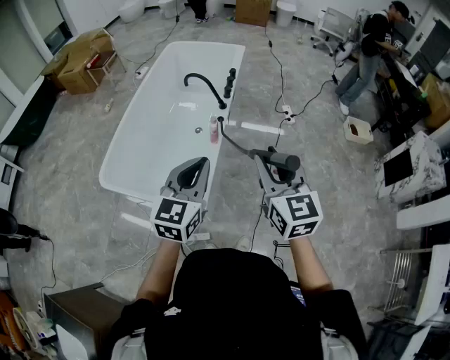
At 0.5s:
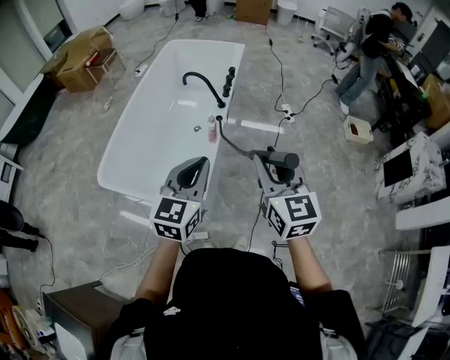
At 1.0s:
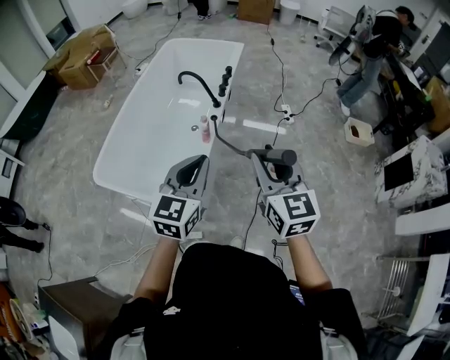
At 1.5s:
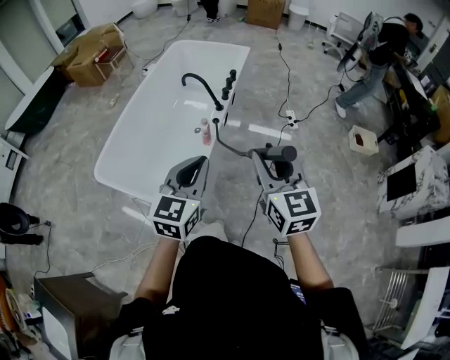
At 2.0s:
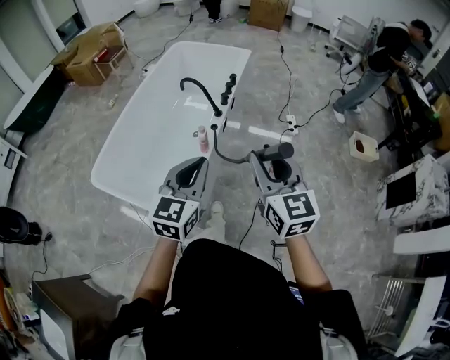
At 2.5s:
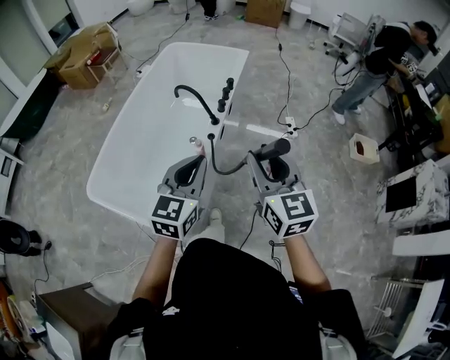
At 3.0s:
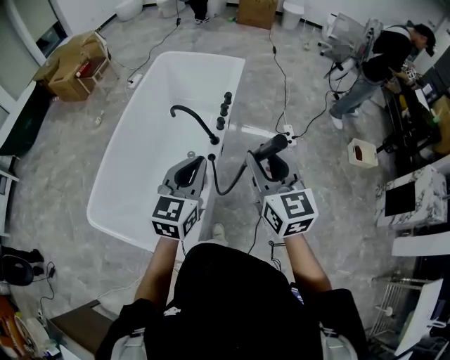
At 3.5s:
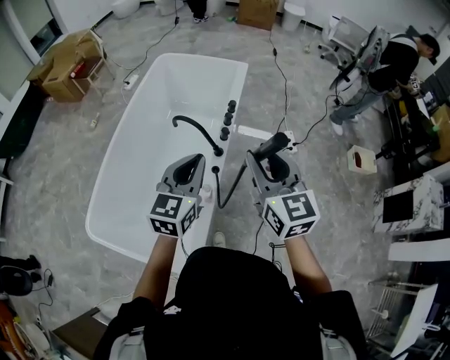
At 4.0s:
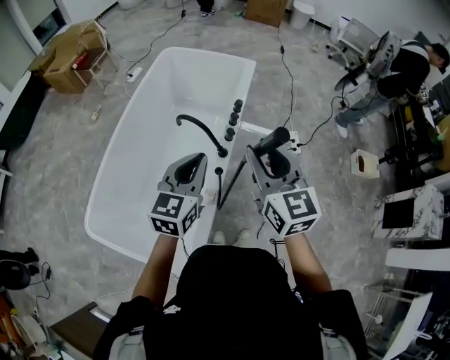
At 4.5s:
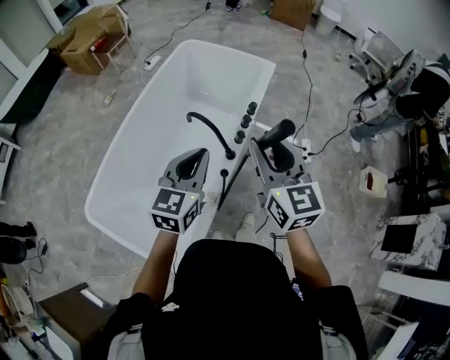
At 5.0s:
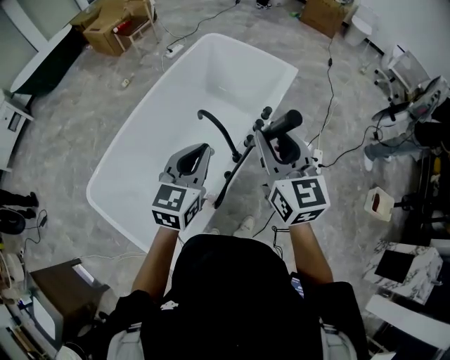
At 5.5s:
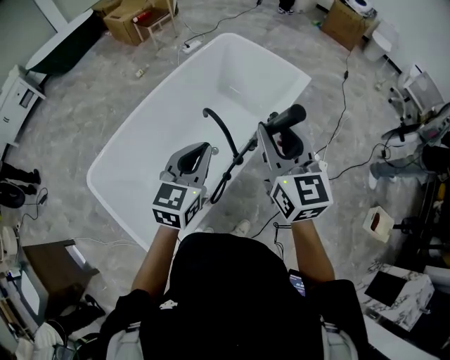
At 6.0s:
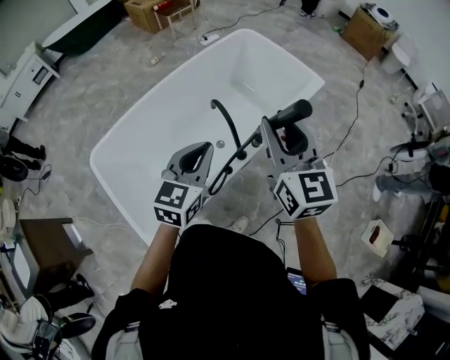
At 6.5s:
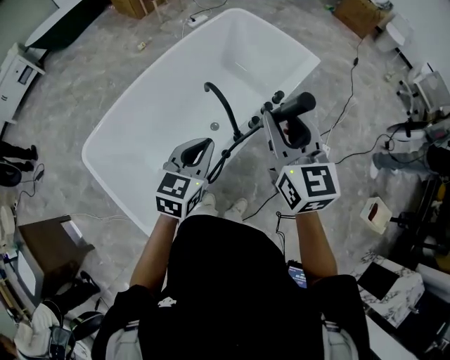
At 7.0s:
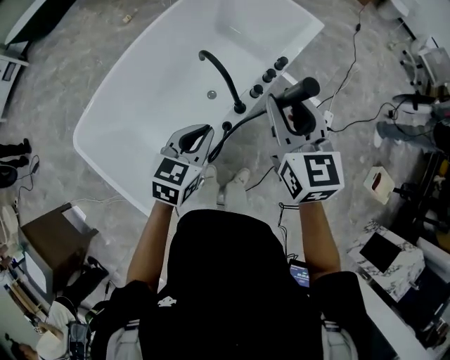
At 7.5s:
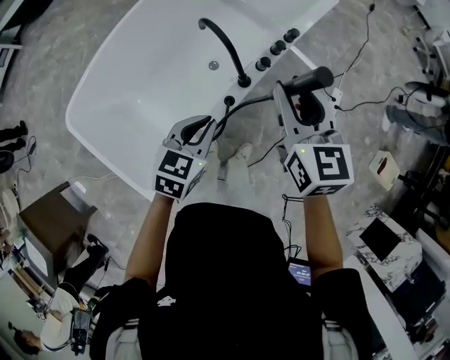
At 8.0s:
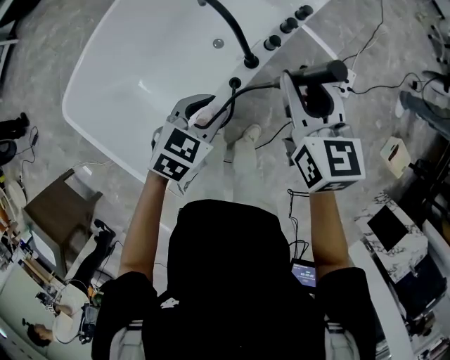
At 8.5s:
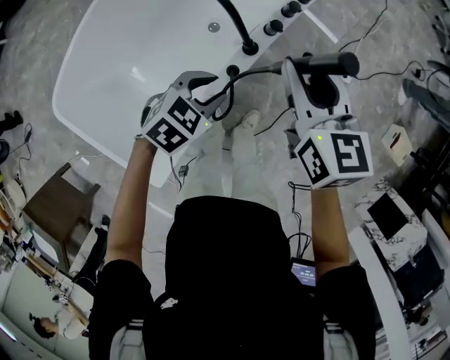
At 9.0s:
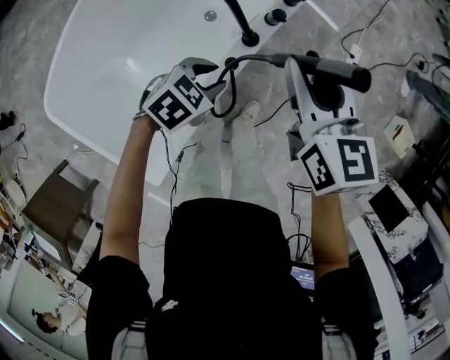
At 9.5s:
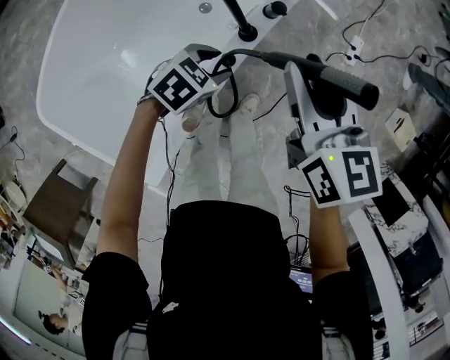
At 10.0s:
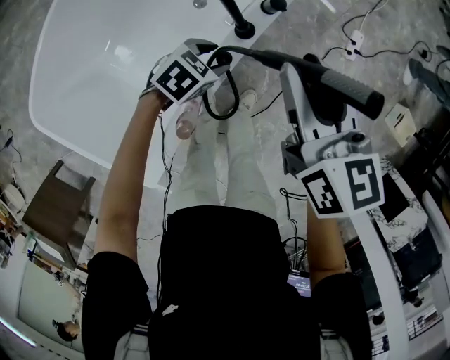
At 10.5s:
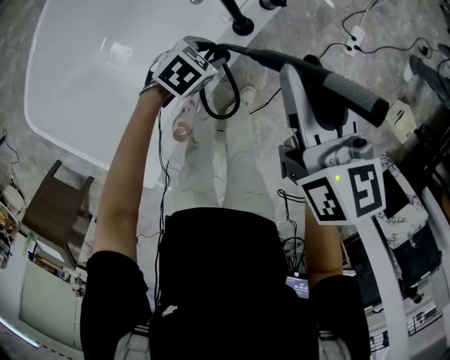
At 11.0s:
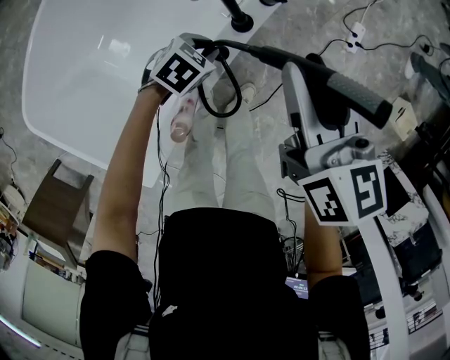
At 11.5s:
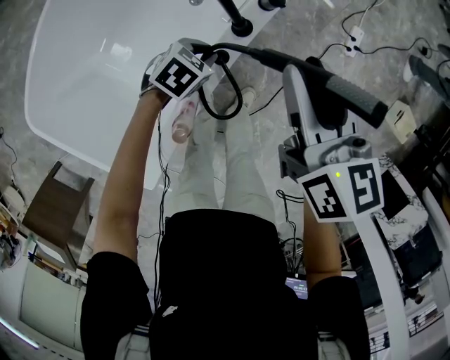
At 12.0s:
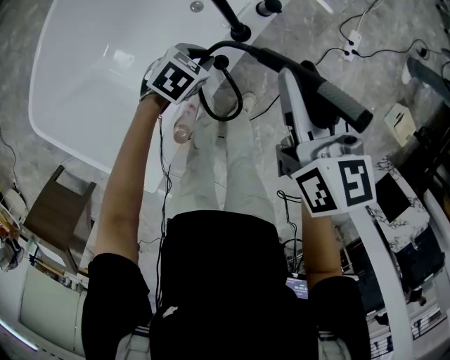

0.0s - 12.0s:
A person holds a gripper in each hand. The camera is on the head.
0.0s - 2.0s: The right gripper travels forward and to the right by roughly 10 cm, while the left gripper is displaced to the right and forward by some 10 cm.
2.0s - 4.0s: The grippers both shift forward by roughly 35 cm.
4.0s - 6.0s: The left gripper changes place by about 5 cm, and turns by some 30 degrees; the right gripper ends up approximately 15 cm from where it was, and rotates roughly 30 degrees.
6.0s - 8.0s: Both grippers move downward, some 25 cm. The right gripper turns by some 20 degrees; the left gripper swivels roughly 40 degrees, and opens its fingers.
8.0s - 10.0s: The right gripper goes some 10 cm downward. Meanwhile the left gripper is displaced downward by about 20 cm, and rotates approximately 20 degrees.
10.0s - 12.0s: The left gripper closes up.

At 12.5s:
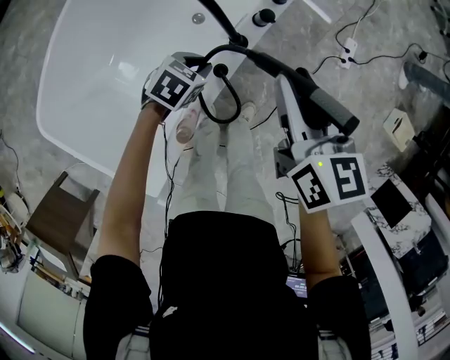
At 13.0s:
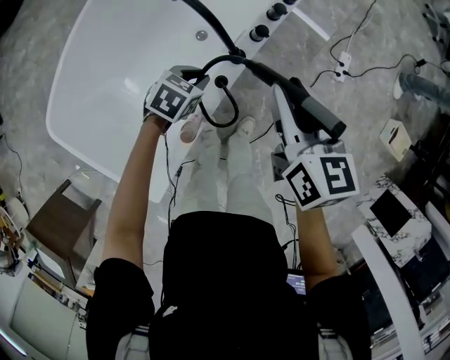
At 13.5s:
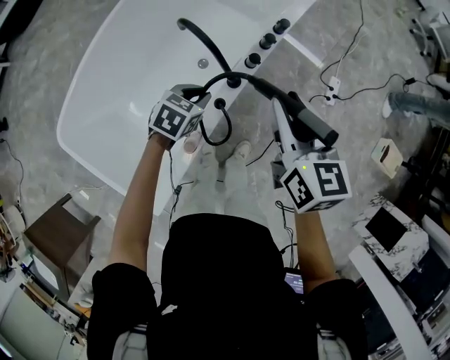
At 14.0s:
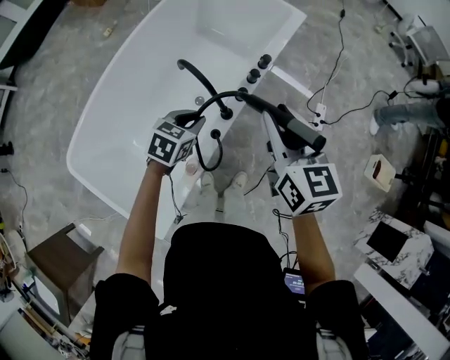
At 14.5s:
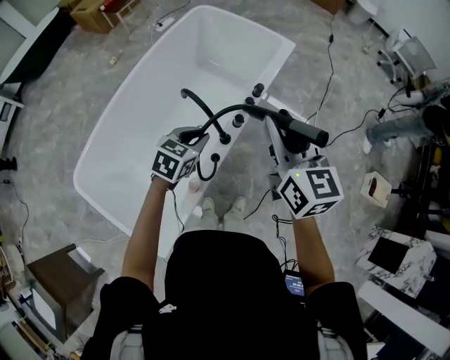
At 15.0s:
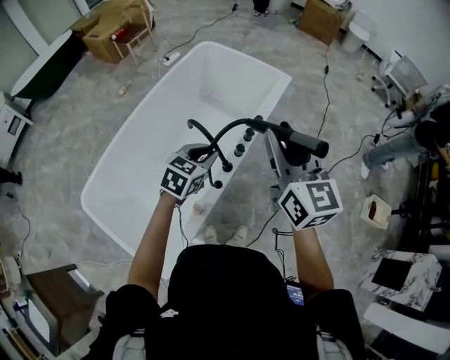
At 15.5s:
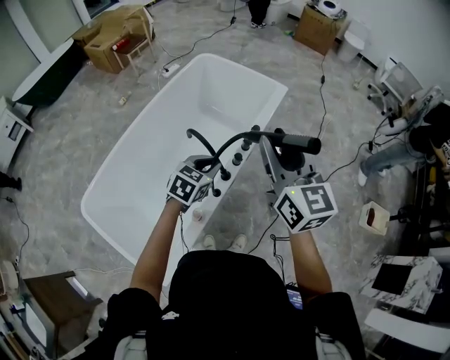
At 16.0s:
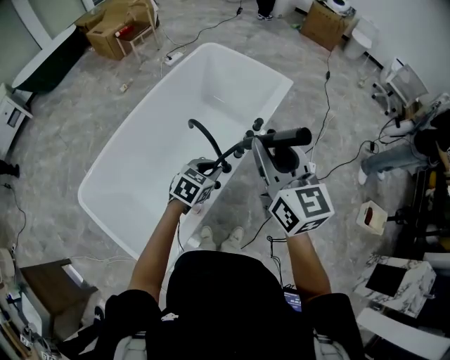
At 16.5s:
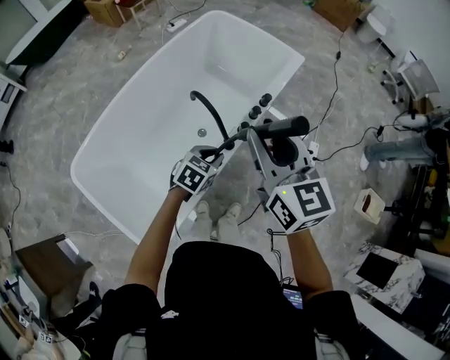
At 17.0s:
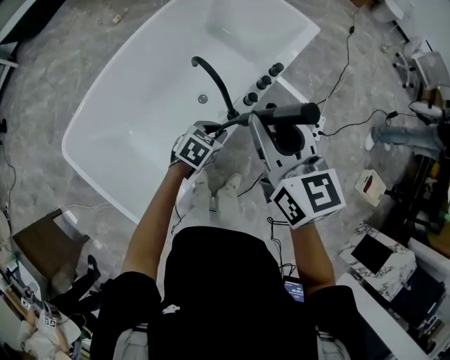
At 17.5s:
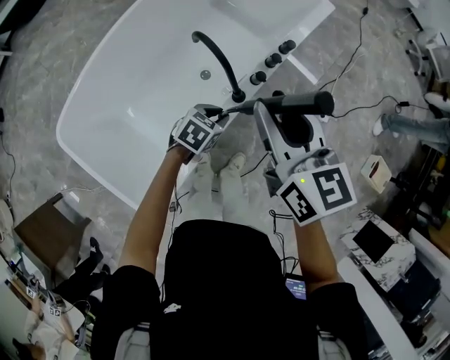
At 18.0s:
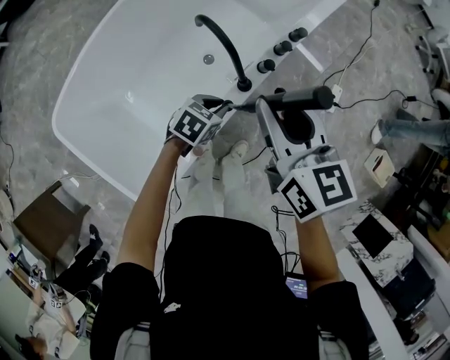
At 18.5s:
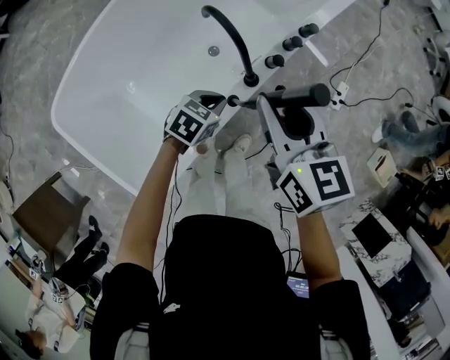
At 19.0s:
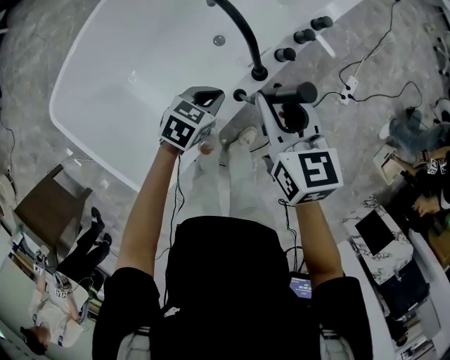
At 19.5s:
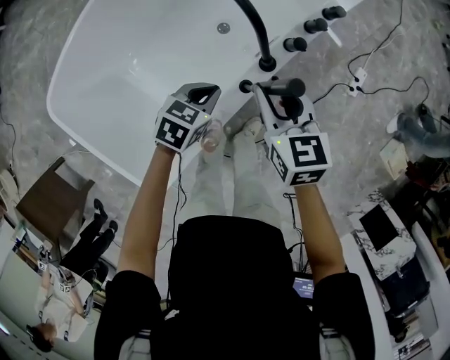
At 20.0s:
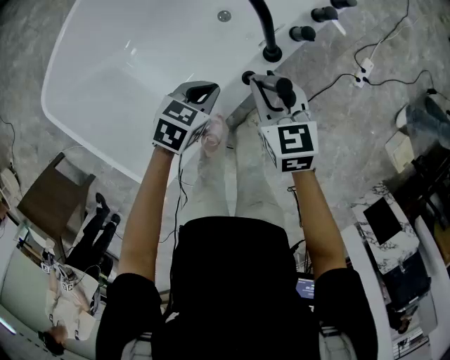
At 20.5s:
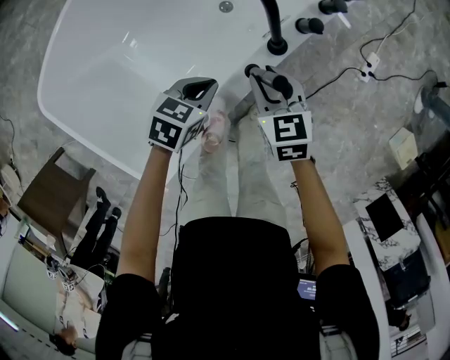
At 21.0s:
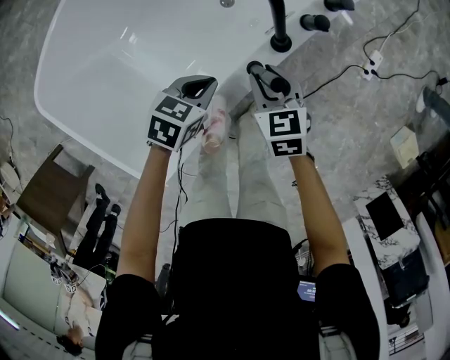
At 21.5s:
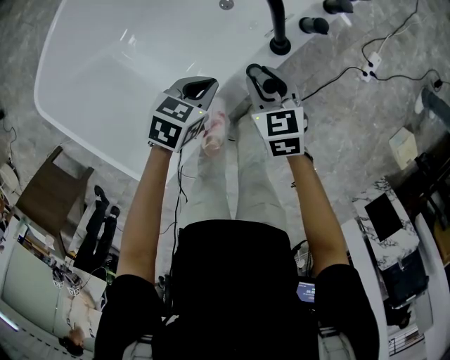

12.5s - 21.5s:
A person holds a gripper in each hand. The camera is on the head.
12.5s - 14.5s: Both grippers move upward, about 30 cm. The left gripper swivels about 20 degrees. Meanwhile the right gripper rotates some 20 degrees.
14.5s - 17.0s: The left gripper shifts some 15 cm downward; the right gripper shifts approximately 10 cm to the left, and moves some 10 cm upward and comes back.
17.0s - 19.5s: The right gripper is displaced downward by approximately 30 cm, and turns by some 20 degrees; the left gripper is displaced downward and to the left by roughly 15 cm.
19.5s - 21.5s: The right gripper is displaced downward by some 15 cm; the left gripper goes roughly 5 cm downward.

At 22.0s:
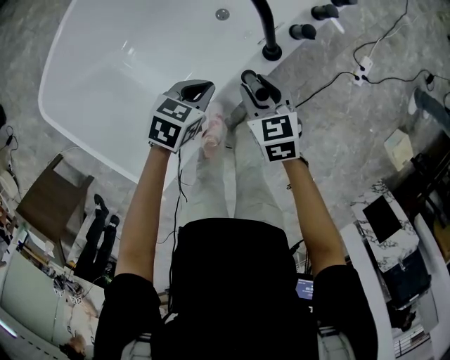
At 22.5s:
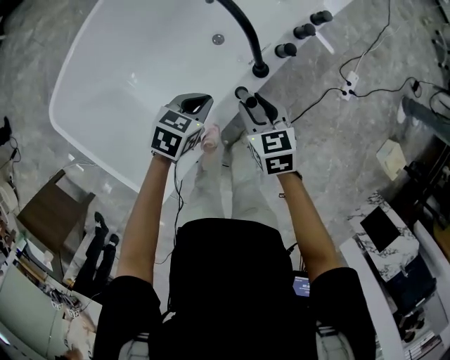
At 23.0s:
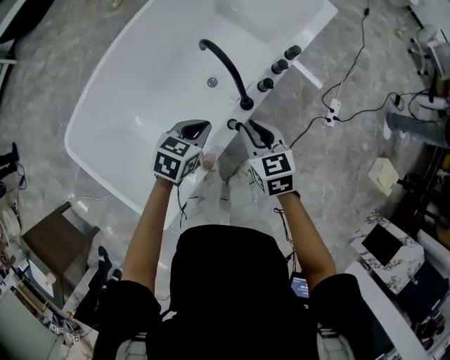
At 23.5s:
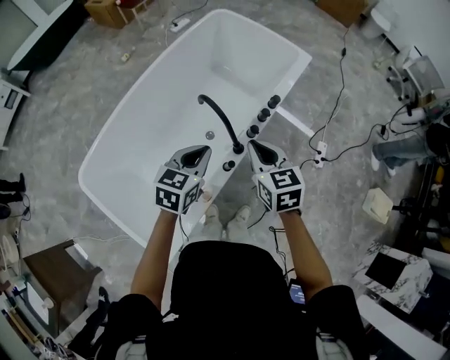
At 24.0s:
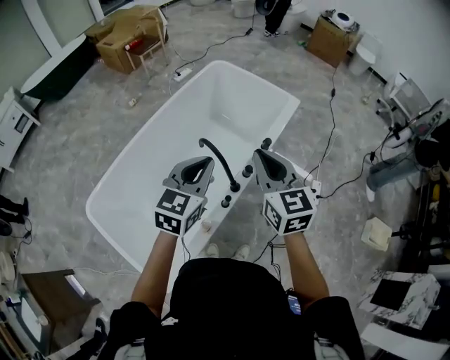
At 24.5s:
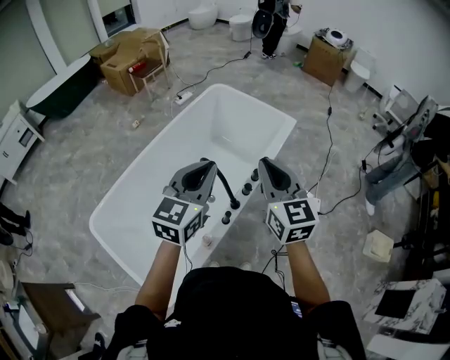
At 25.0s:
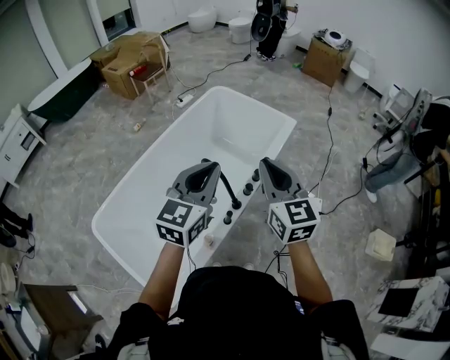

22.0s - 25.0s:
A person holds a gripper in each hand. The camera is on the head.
22.0s - 23.5s: Both grippers move upward, roughly 35 cm. The right gripper swivels roughly 20 degrees, and closes up. The left gripper swivels some 30 degrees.
23.5s - 25.0s: Both grippers travel together upward, approximately 25 cm. The left gripper turns by approximately 30 degrees. The right gripper changes its angle by about 30 degrees.

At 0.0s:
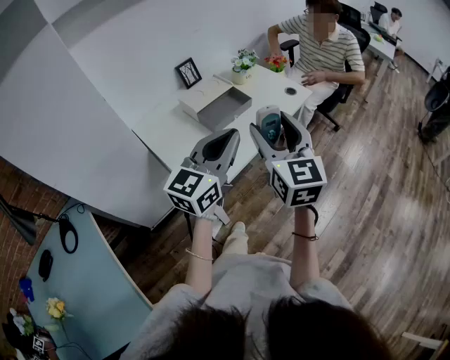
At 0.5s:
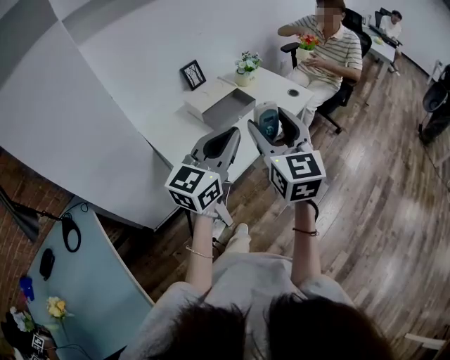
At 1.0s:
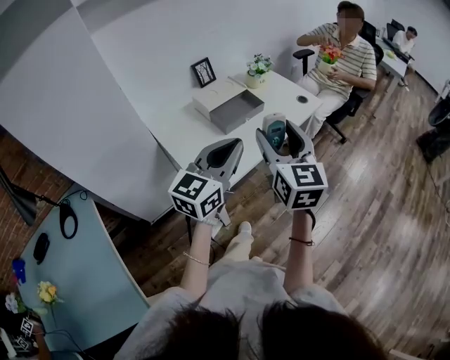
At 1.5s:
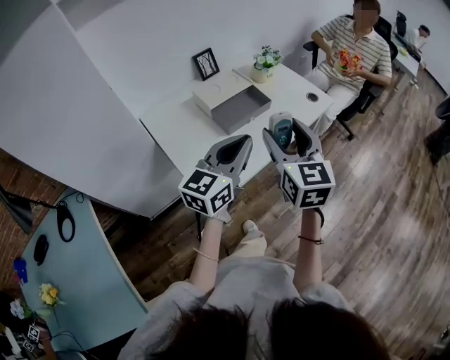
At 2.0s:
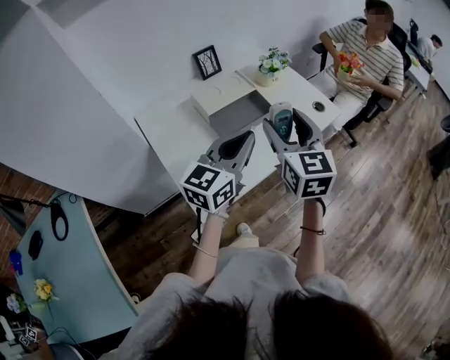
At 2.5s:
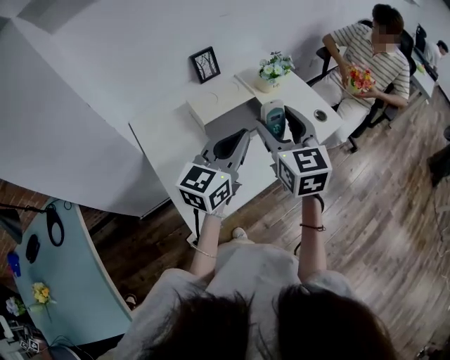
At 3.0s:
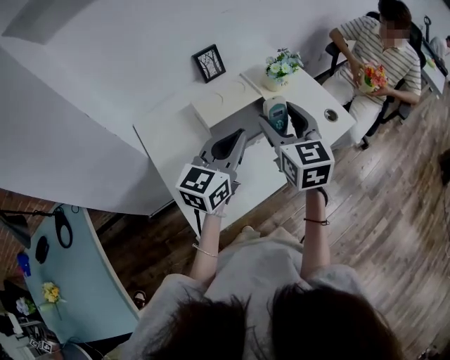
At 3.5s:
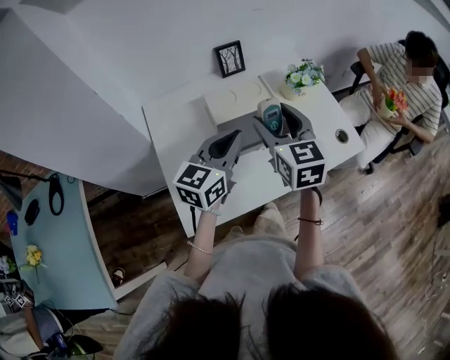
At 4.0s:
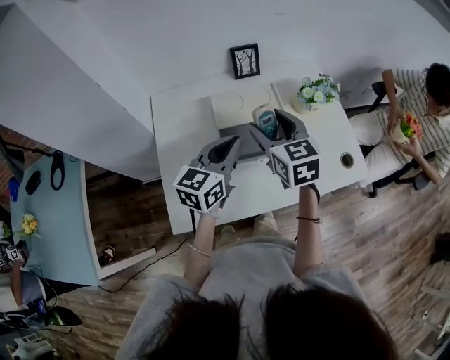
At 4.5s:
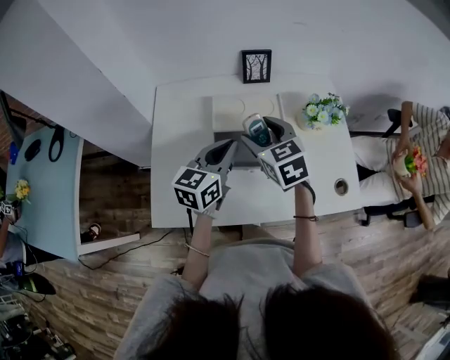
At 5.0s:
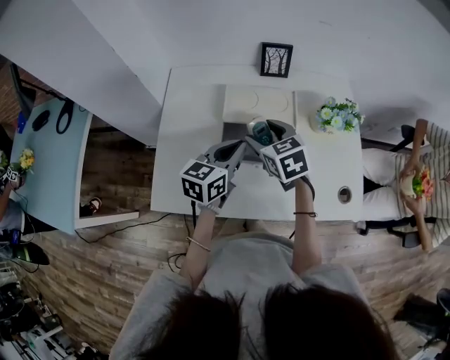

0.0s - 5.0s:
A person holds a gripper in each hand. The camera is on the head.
0.0s - 2.5s: Both grippers travel together forward, approximately 20 cm.
2.5s - 5.0s: Both grippers move downward, roughly 15 cm. The left gripper rotates about 40 degrees. The right gripper turns by about 60 degrees.
